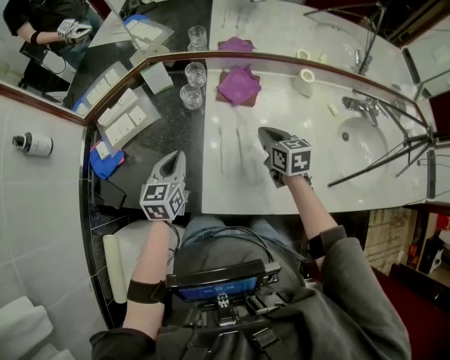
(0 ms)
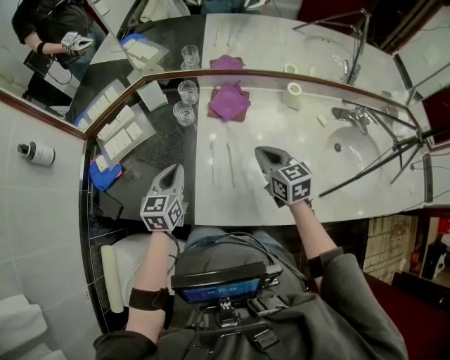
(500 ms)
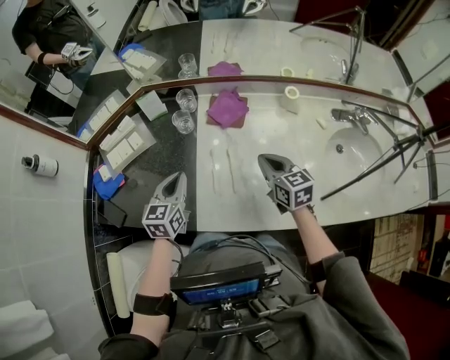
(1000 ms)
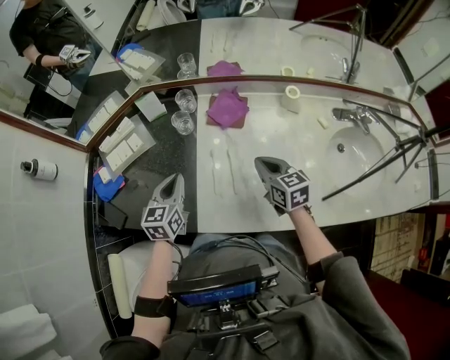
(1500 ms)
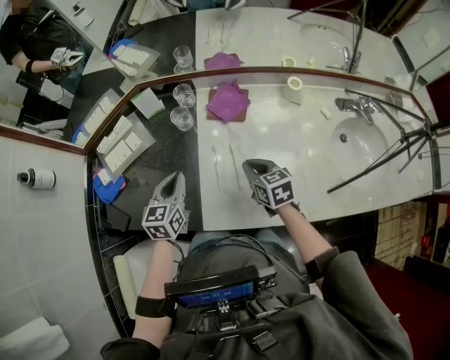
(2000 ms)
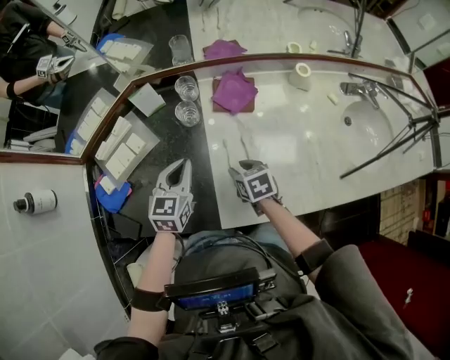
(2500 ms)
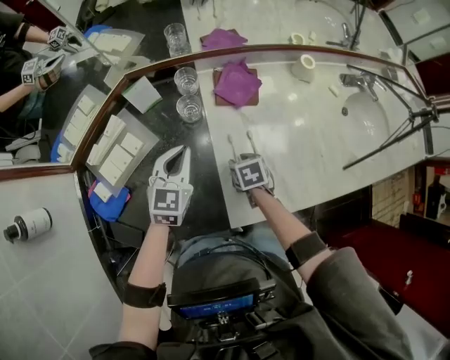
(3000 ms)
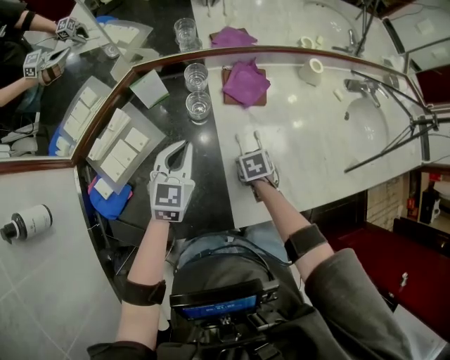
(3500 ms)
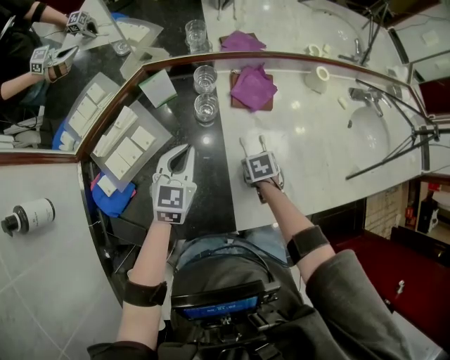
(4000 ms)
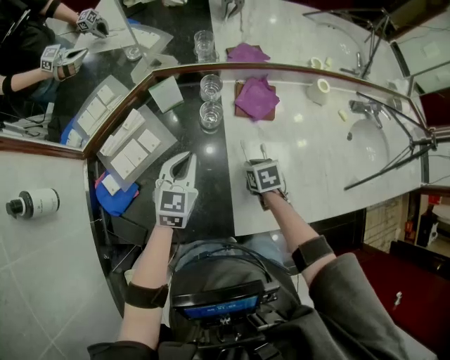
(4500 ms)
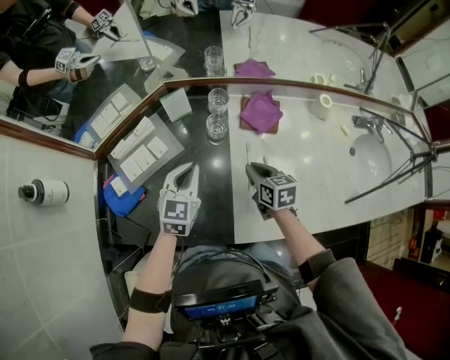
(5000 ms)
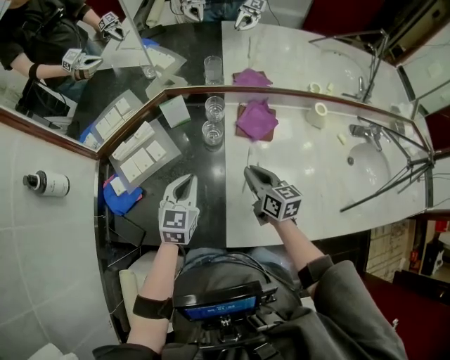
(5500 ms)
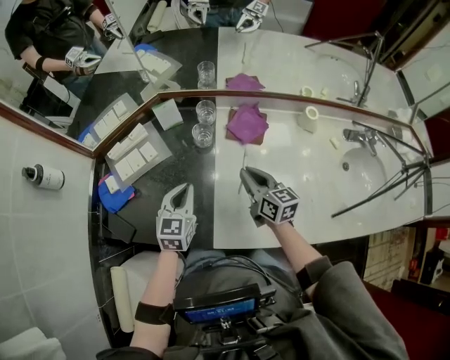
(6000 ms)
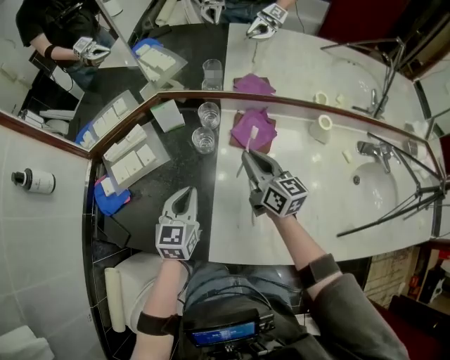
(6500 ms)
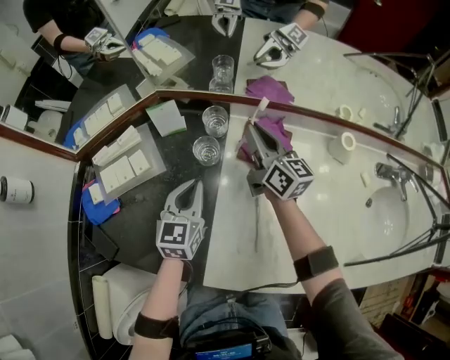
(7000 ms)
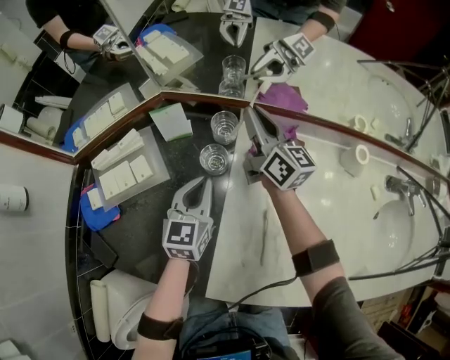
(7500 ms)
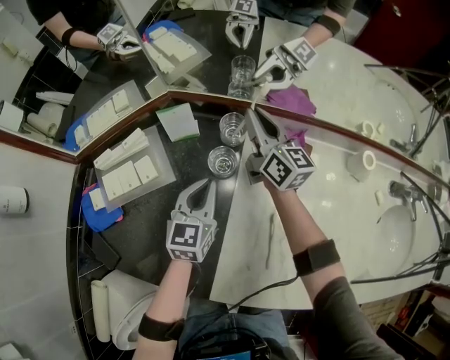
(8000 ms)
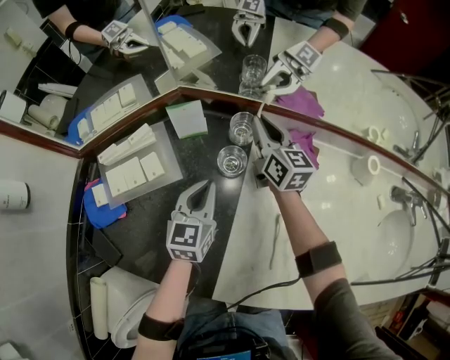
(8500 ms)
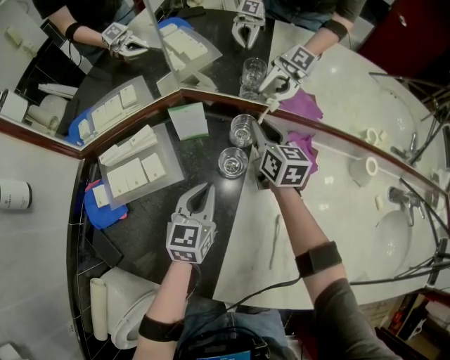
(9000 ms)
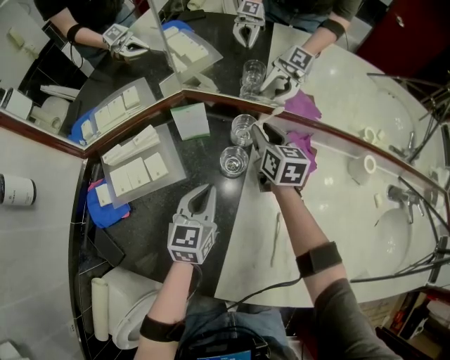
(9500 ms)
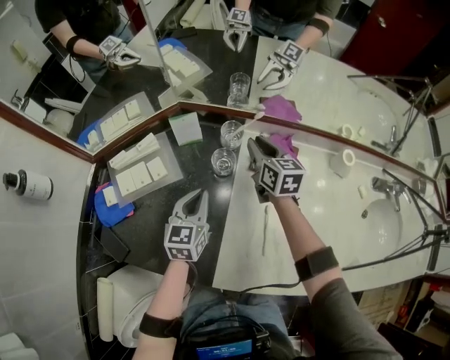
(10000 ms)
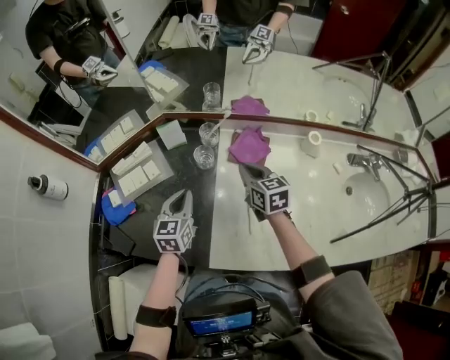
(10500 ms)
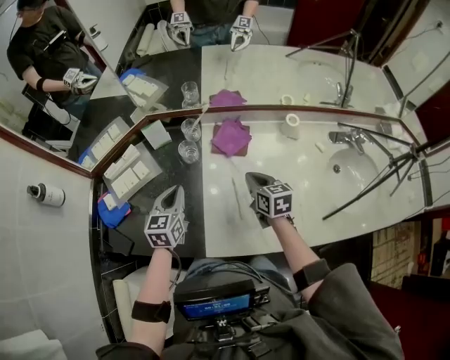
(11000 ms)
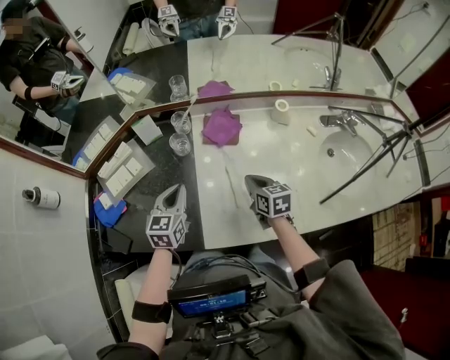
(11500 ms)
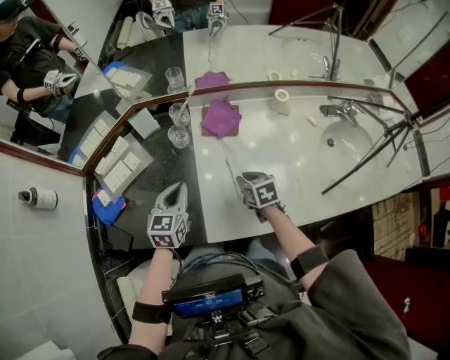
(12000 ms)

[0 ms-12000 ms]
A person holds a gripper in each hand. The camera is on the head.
0 ms to 2000 ms: The right gripper changes place by approximately 5 cm.
2000 ms to 4000 ms: The right gripper heads downward, covering approximately 15 cm, tips its fingers downward by about 30 degrees, and opens, then closes once more. Meanwhile the left gripper moves some 10 cm, and rotates some 30 degrees.
4000 ms to 6000 ms: The right gripper goes roughly 20 cm upward, and angles its fingers upward, by some 60 degrees; the left gripper shifts by approximately 10 cm.
6000 ms to 8000 ms: The right gripper goes some 30 cm forward; the left gripper heads forward and downward, covering approximately 15 cm.
8000 ms to 10000 ms: The right gripper travels backward by approximately 5 cm, moves some 10 cm downward and comes back, and turns by some 20 degrees, while the left gripper shifts by roughly 5 cm.
10000 ms to 12000 ms: The right gripper moves backward, some 30 cm, and swivels roughly 30 degrees, while the left gripper heads backward and upward, covering some 15 cm.

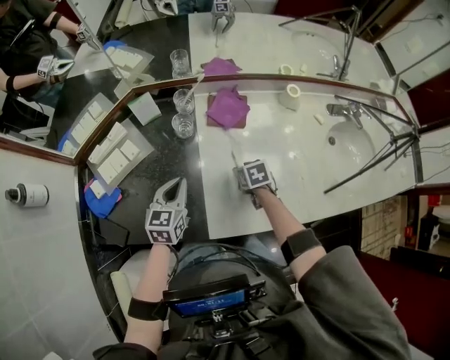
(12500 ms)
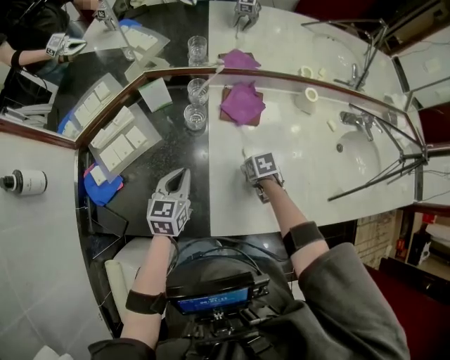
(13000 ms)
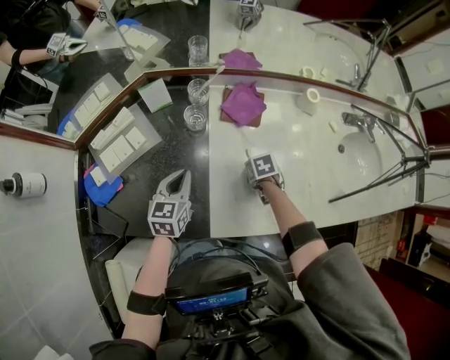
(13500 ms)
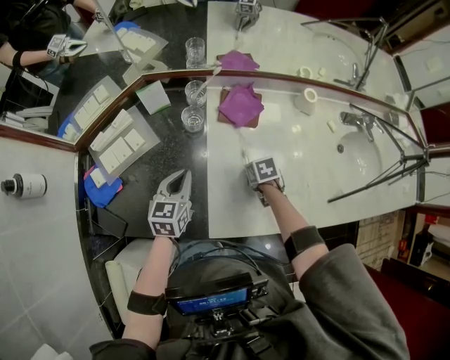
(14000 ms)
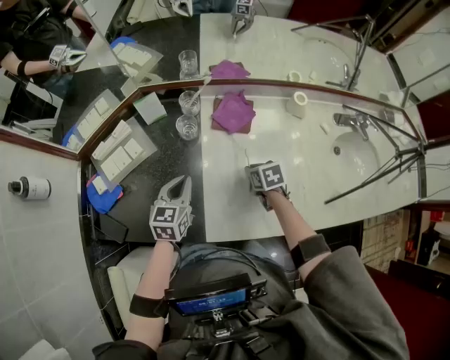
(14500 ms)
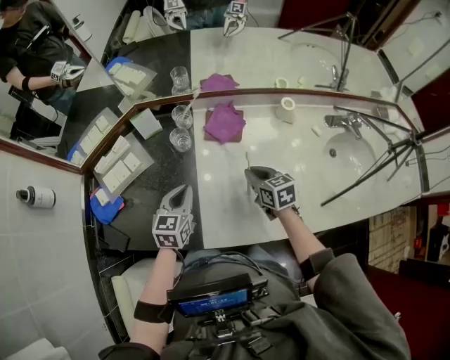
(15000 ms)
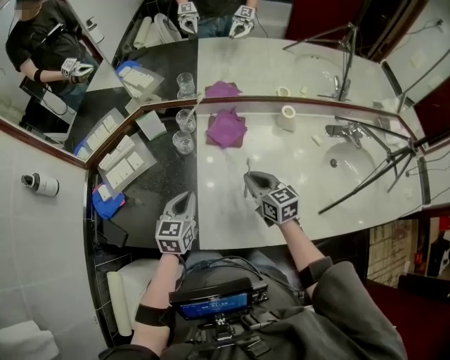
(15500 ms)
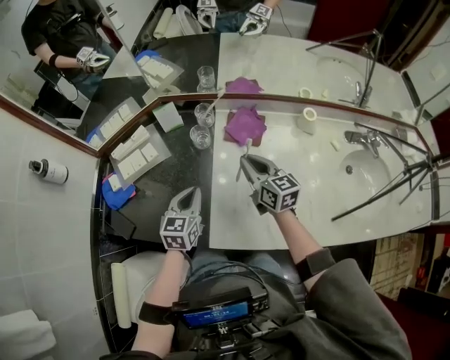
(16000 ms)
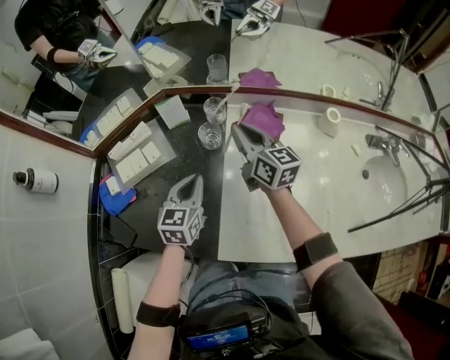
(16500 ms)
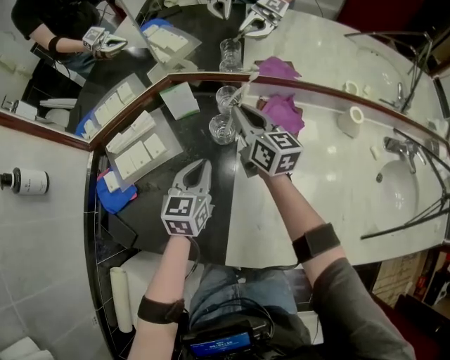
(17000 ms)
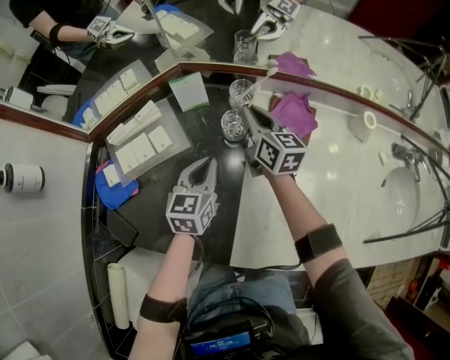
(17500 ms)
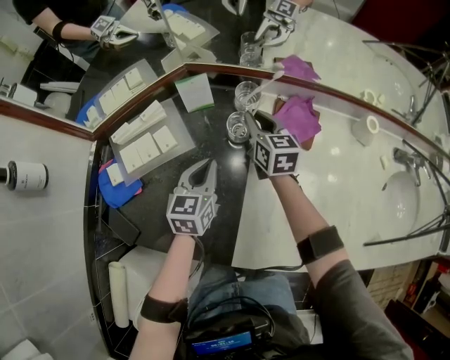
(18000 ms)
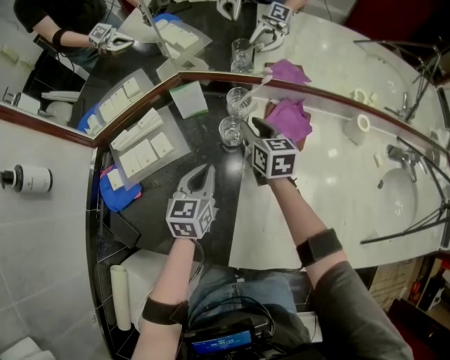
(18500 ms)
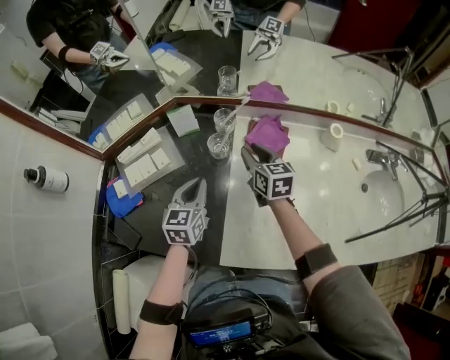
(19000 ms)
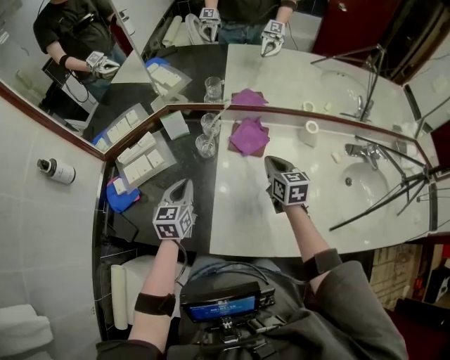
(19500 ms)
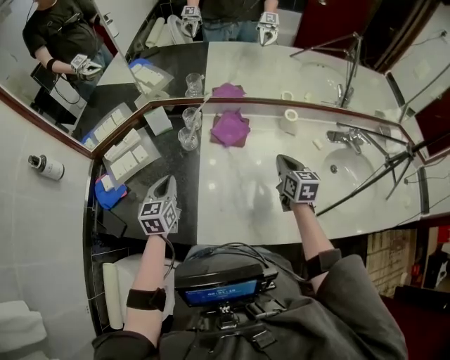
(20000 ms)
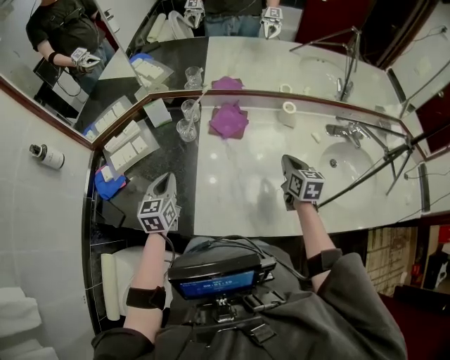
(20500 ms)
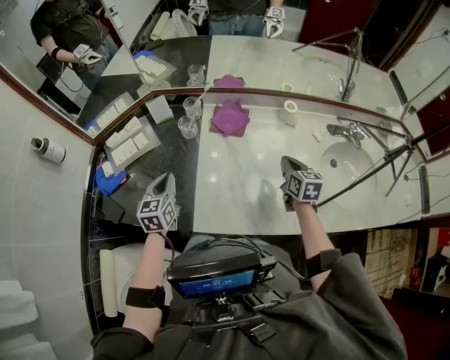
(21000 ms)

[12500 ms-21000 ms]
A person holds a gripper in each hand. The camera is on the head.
12500 ms to 14500 ms: The right gripper closes up.
14500 ms to 16500 ms: The right gripper shifts some 25 cm forward, upward and to the left, and tilts its fingers roughly 50 degrees upward.
16500 ms to 19000 ms: The right gripper heads downward, covering approximately 5 cm, swivels some 20 degrees, and opens its fingers.
19000 ms to 21000 ms: The right gripper shifts approximately 30 cm to the right and backward, and closes up; the left gripper shifts roughly 10 cm backward.

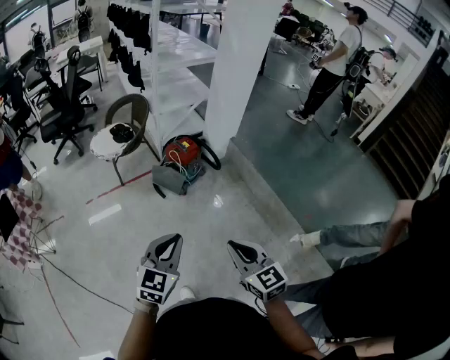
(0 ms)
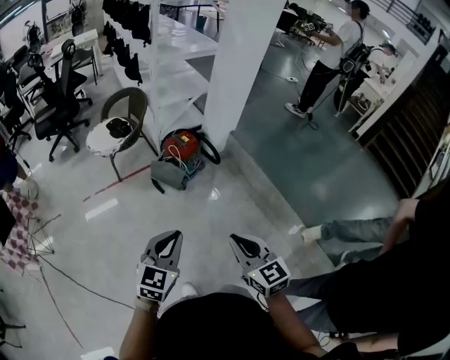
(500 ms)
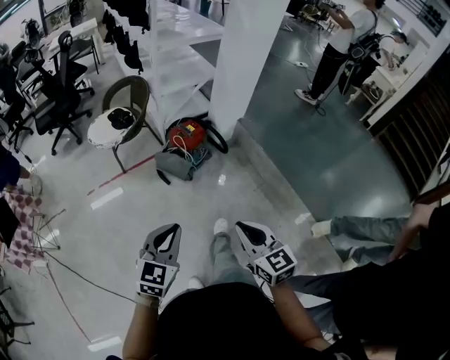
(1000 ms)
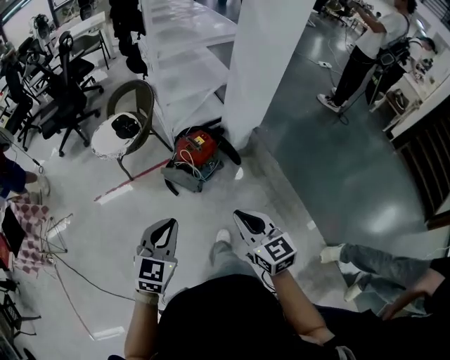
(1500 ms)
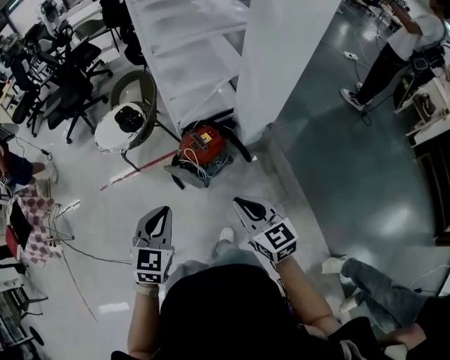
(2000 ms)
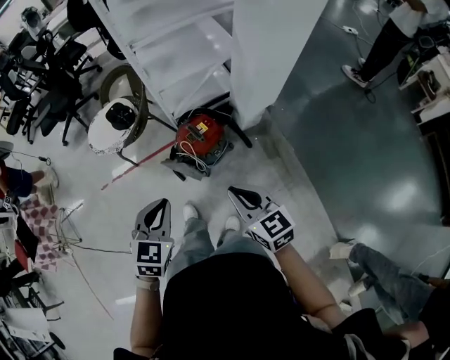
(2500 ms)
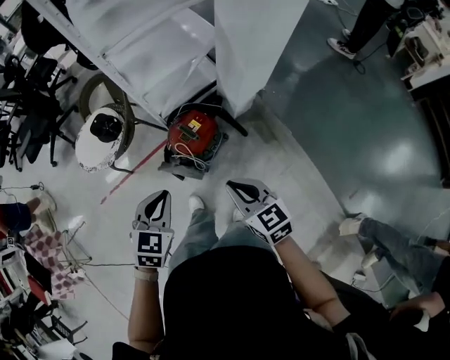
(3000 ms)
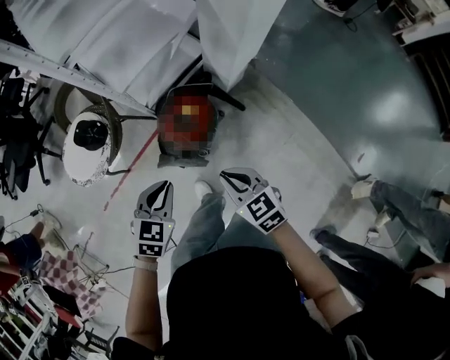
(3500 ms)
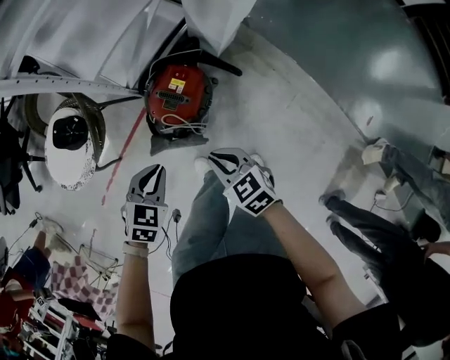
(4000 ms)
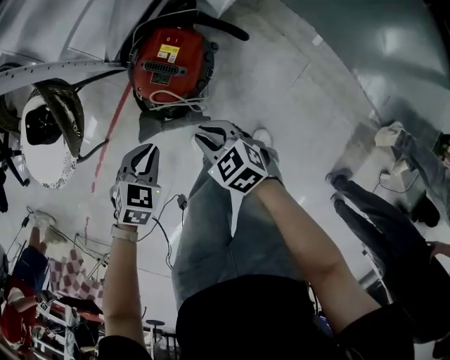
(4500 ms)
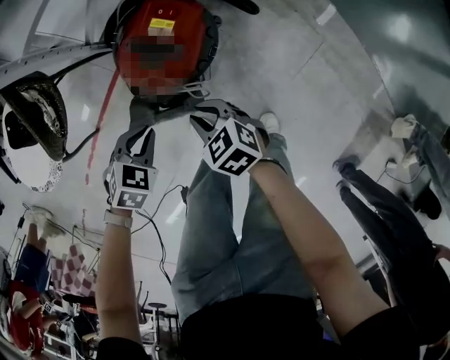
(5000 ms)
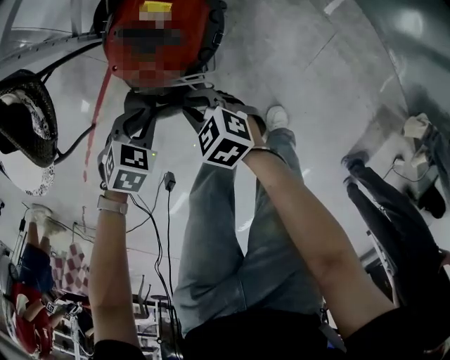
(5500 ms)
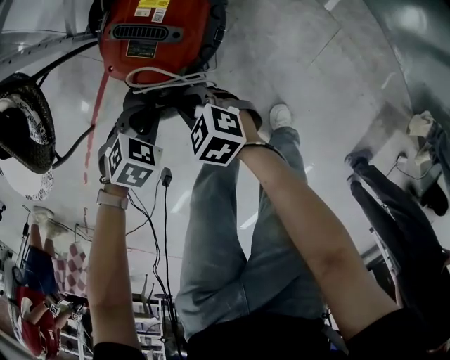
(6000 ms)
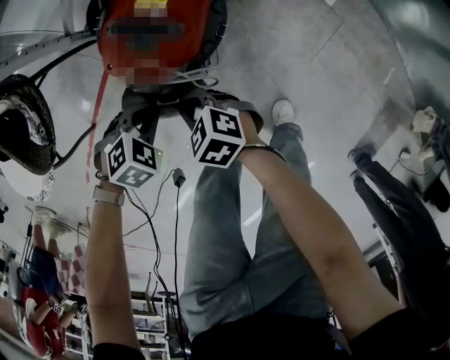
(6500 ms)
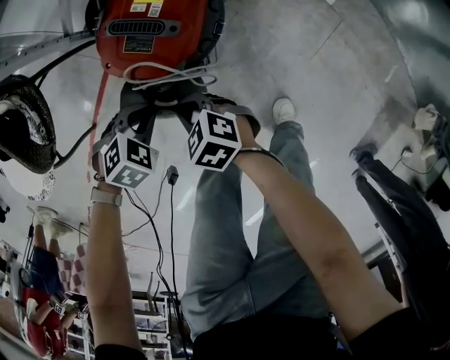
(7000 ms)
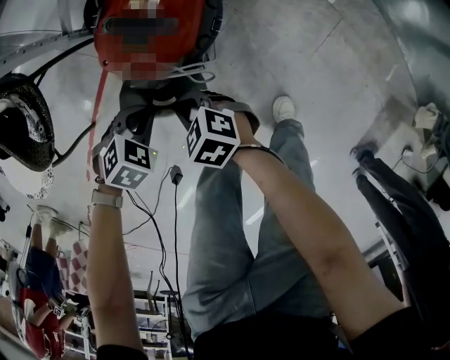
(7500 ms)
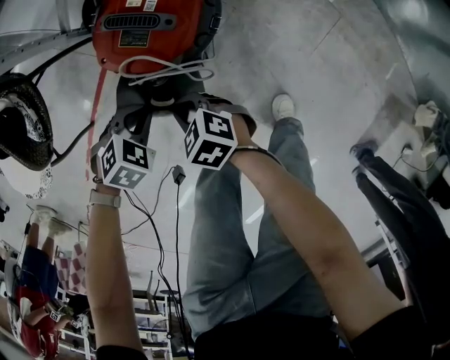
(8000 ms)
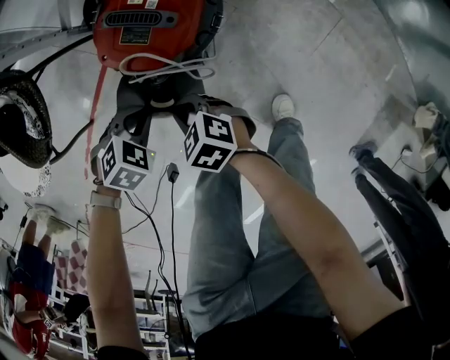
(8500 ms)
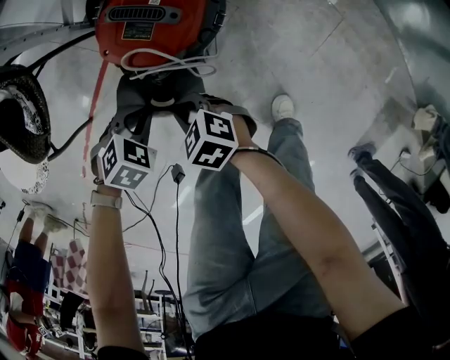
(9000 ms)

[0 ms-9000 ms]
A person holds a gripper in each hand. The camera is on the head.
0 ms to 2000 ms: The two grippers travel together, forward, roughly 40 cm. The left gripper changes its angle by about 20 degrees.
2000 ms to 4500 ms: Both grippers move downward, some 40 cm. The right gripper swivels some 30 degrees, while the left gripper points its fingers about 30 degrees further downward.
4500 ms to 7000 ms: Both grippers travel together downward, roughly 20 cm. The left gripper changes its angle by about 30 degrees.
7000 ms to 9000 ms: There are only small adjustments of the grippers.
